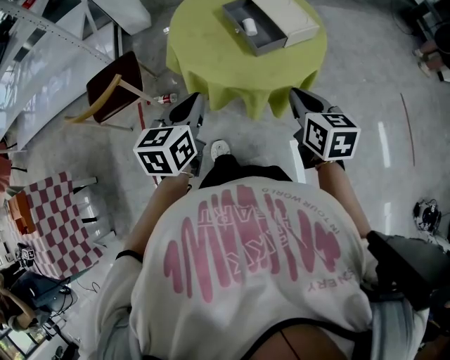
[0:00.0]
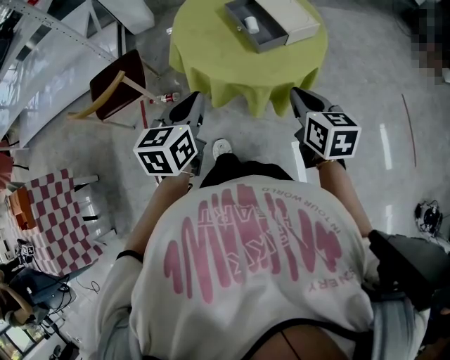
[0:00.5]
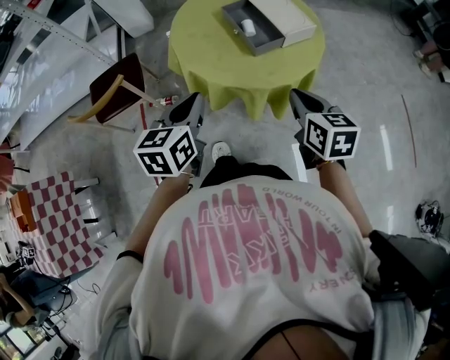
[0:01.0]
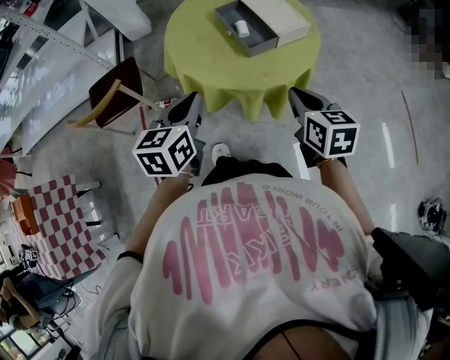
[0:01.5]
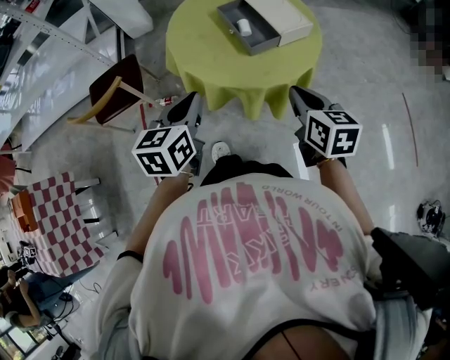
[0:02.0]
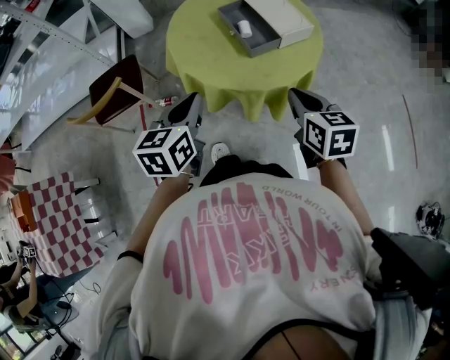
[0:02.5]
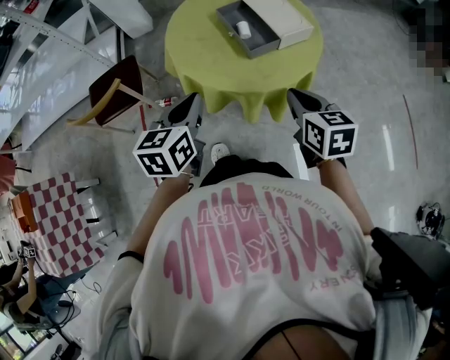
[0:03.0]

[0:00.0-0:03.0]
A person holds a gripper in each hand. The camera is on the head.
0:00.0 to 0:01.5: The grippers move only a little.
0:01.5 to 0:03.0: Neither gripper changes place.

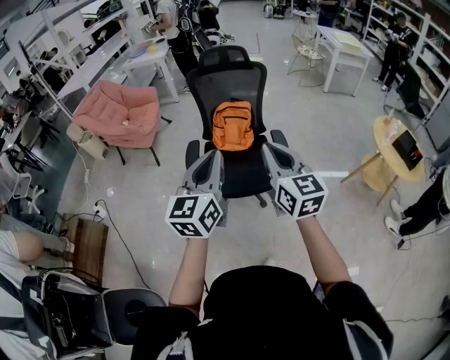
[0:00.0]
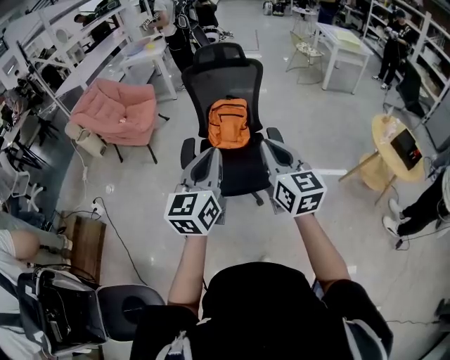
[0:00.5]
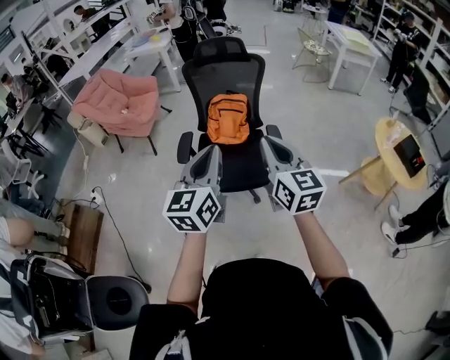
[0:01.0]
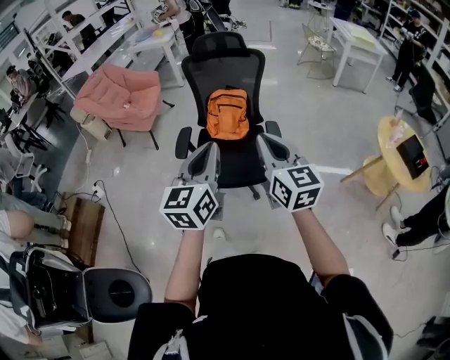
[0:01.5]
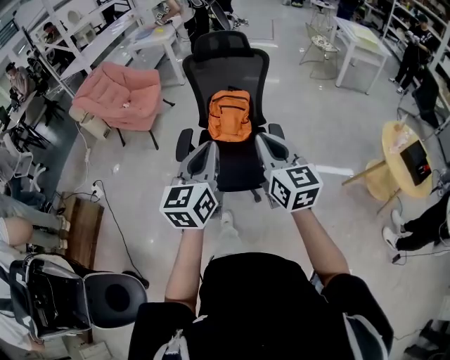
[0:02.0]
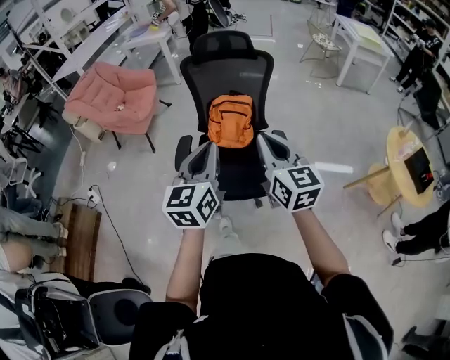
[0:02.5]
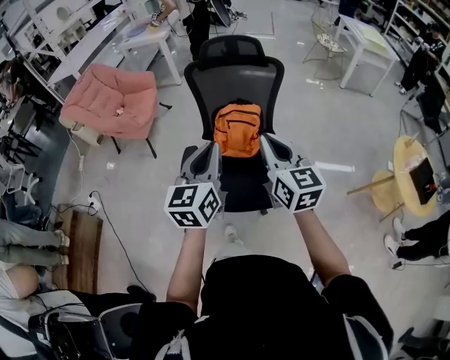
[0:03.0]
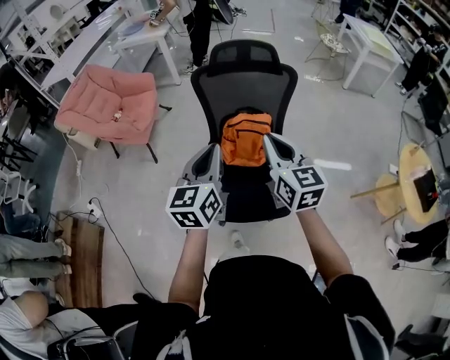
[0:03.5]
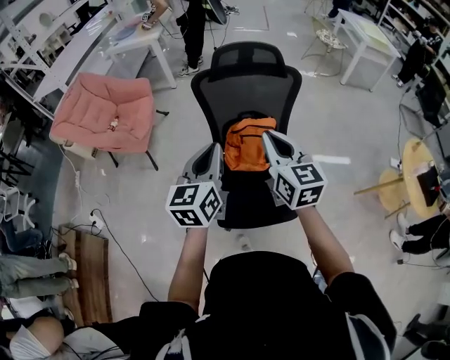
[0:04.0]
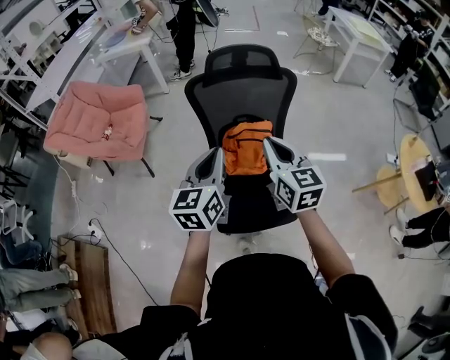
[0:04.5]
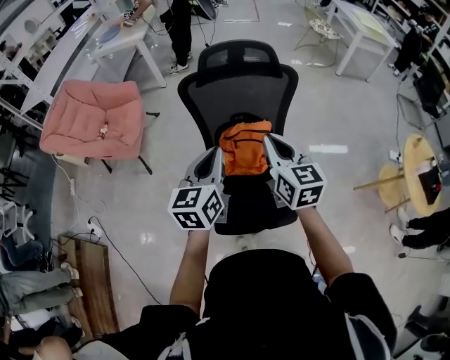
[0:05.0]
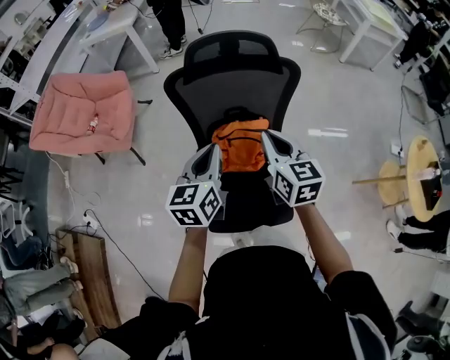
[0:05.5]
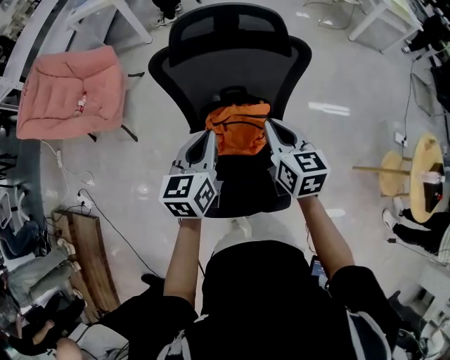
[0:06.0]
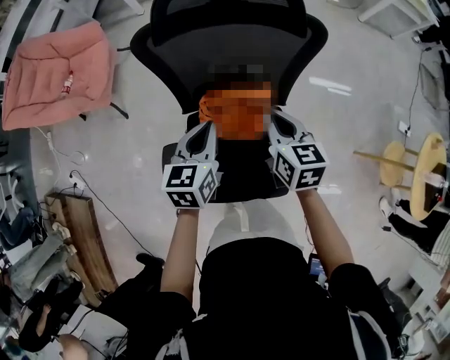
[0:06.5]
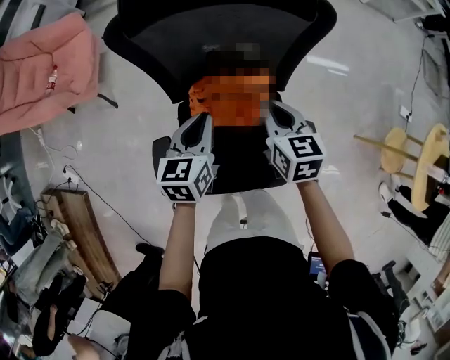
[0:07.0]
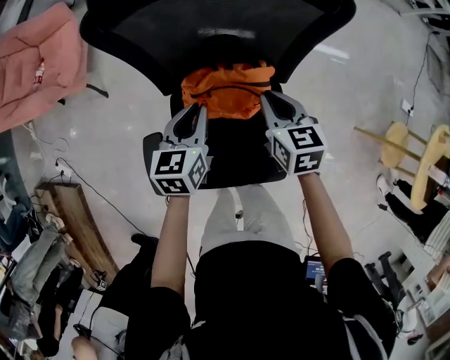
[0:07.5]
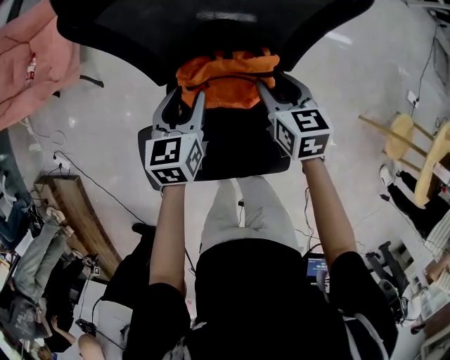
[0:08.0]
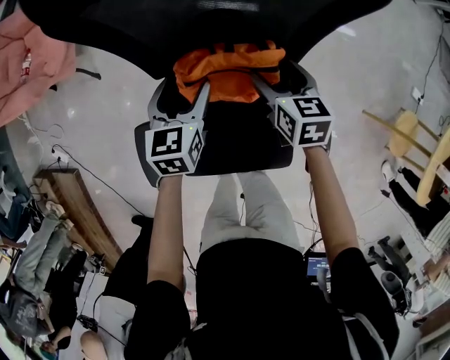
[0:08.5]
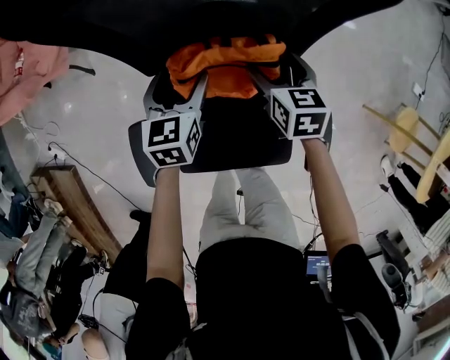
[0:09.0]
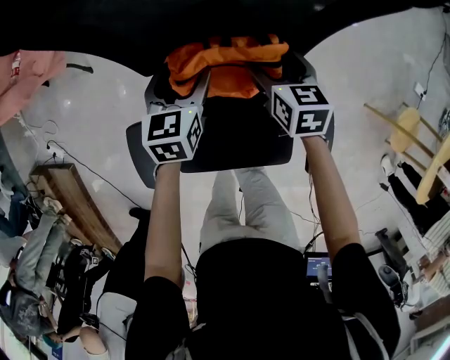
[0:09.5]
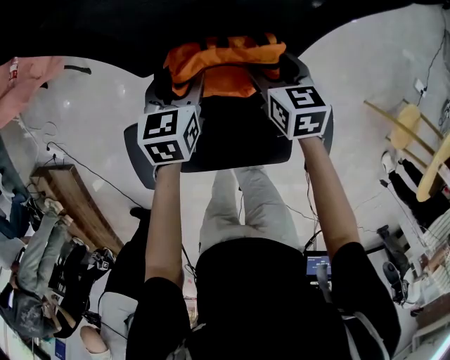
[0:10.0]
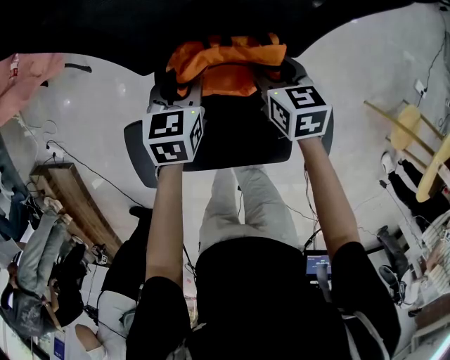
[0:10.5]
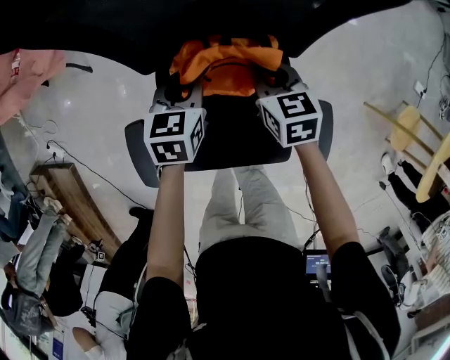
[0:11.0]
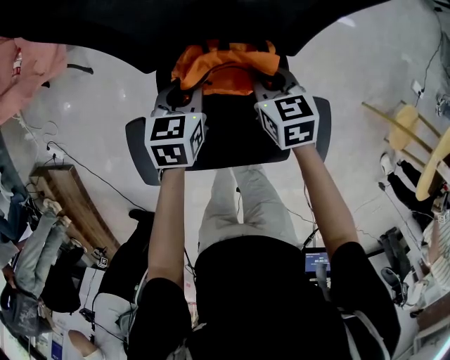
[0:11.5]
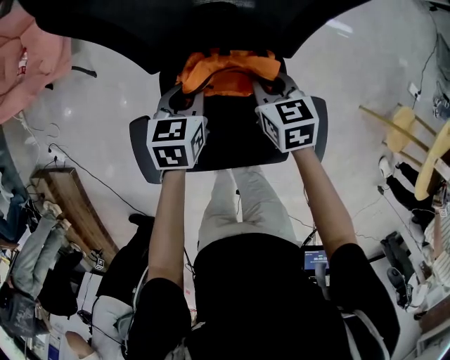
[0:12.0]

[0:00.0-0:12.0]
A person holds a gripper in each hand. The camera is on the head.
0:00.0 to 0:02.0: The right gripper travels forward and to the right by about 10 cm. The left gripper moves to the right and forward, approximately 10 cm.
0:02.0 to 0:04.0: Both grippers move forward and to the left, roughly 40 cm.
0:04.0 to 0:06.0: The right gripper is displaced forward, downward and to the right by approximately 25 cm; the left gripper heads forward and downward, covering approximately 25 cm.
0:06.0 to 0:08.0: Both grippers travel together downward, about 25 cm. The left gripper opens, while the right gripper opens.
0:08.0 to 0:10.0: Both grippers move downward, about 10 cm. The right gripper opens up.
0:10.0 to 0:12.0: The two grippers go some 5 cm backward. The left gripper closes up. Meanwhile the right gripper closes.

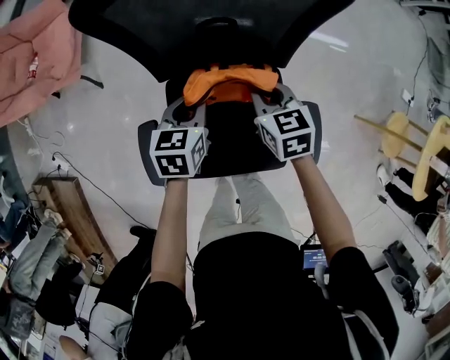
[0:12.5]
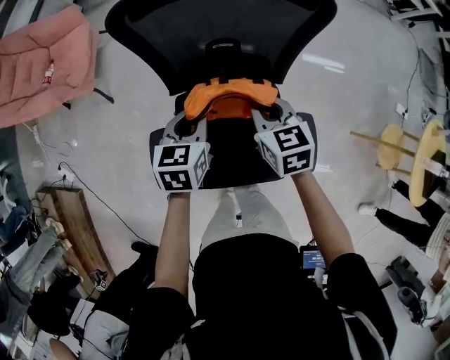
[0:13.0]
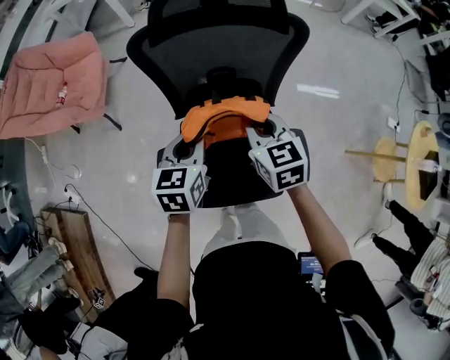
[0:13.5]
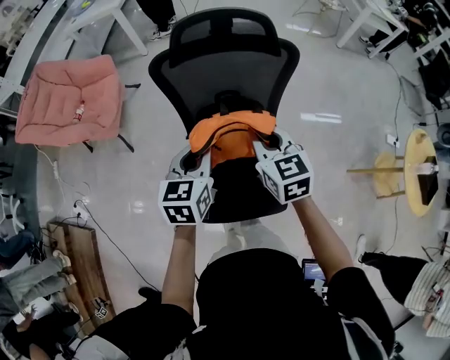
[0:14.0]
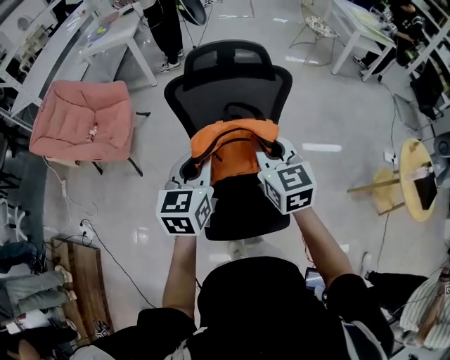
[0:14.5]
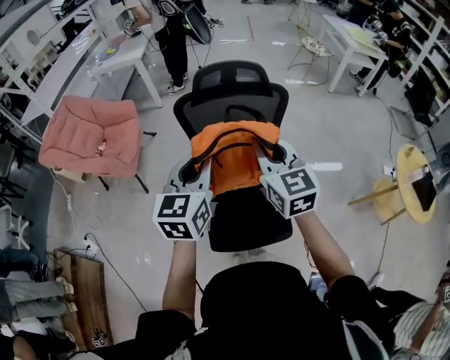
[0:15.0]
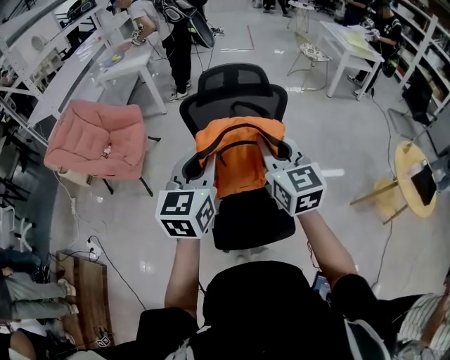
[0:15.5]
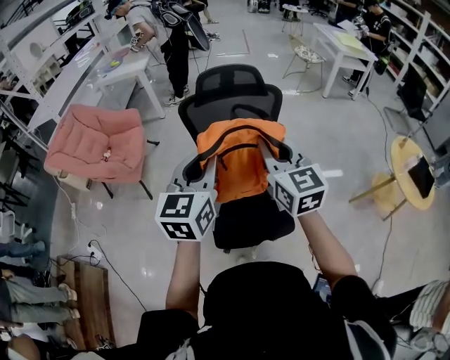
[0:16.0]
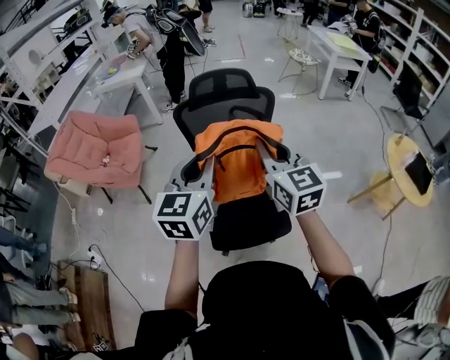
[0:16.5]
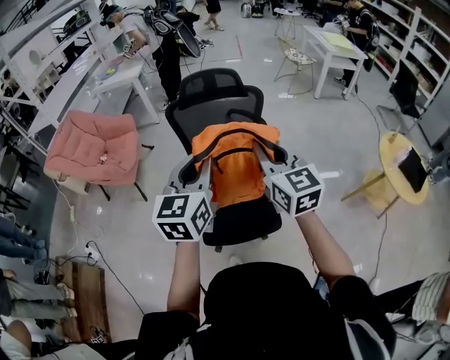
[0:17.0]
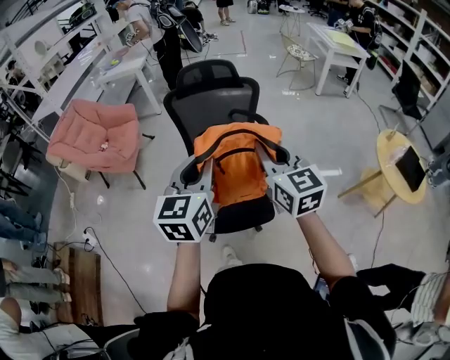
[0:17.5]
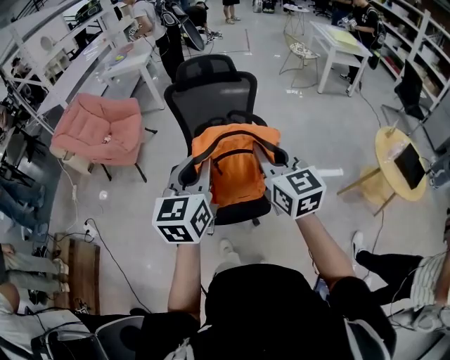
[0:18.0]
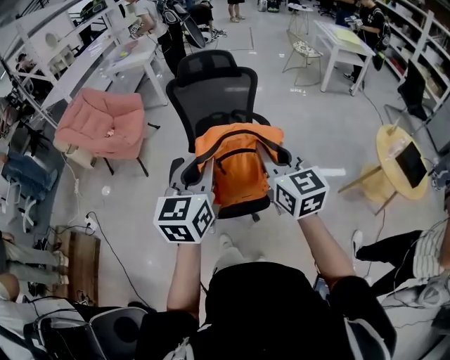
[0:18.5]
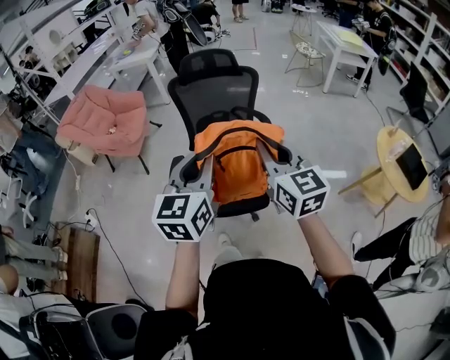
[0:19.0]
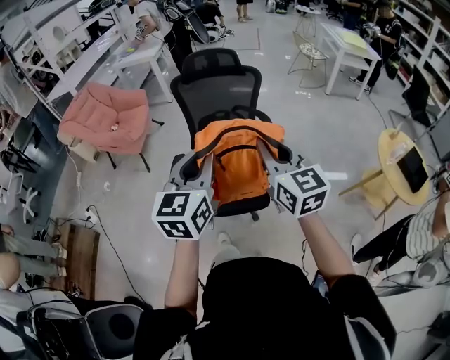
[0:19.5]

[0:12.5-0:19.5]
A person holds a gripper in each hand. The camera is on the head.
0:12.5 to 0:14.5: Both grippers move upward, about 35 cm. The left gripper rotates approximately 30 degrees. The right gripper rotates approximately 30 degrees.
0:14.5 to 0:16.0: Both grippers move backward and upward, some 15 cm.
0:16.0 to 0:17.5: The grippers both shift backward and to the right by roughly 15 cm.
0:17.5 to 0:19.5: Both grippers move backward, roughly 10 cm.

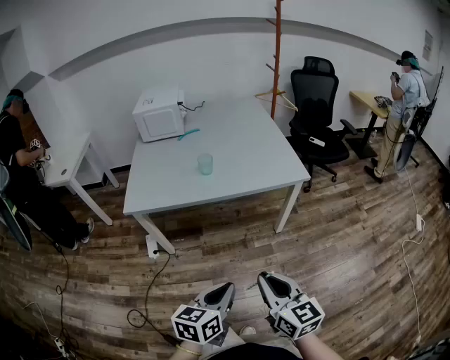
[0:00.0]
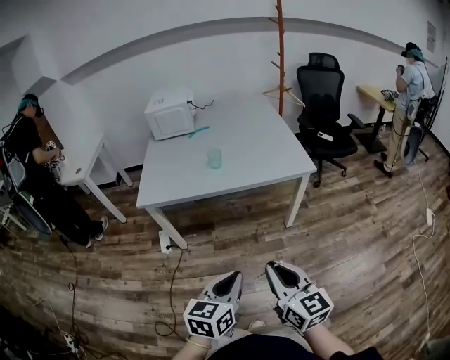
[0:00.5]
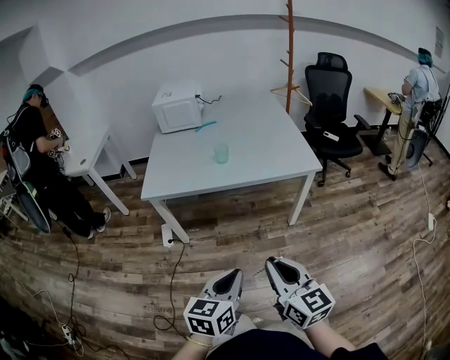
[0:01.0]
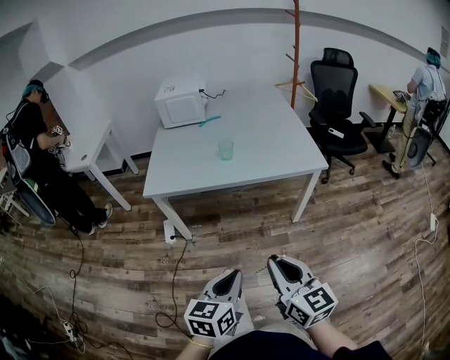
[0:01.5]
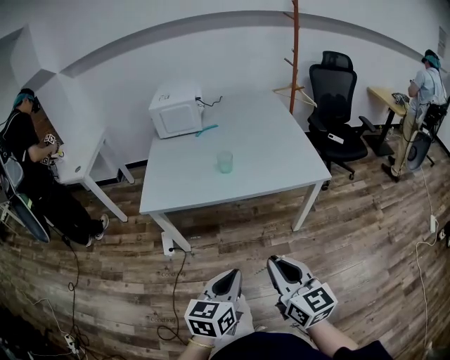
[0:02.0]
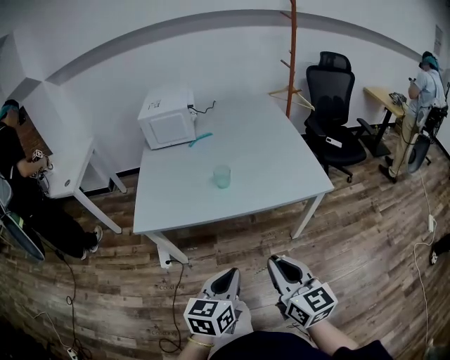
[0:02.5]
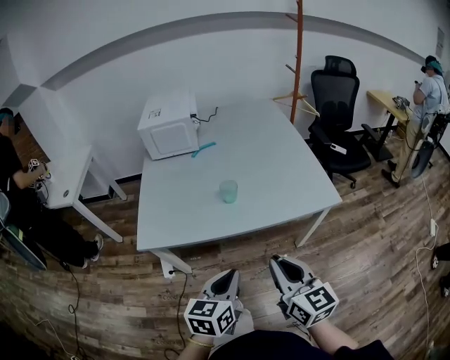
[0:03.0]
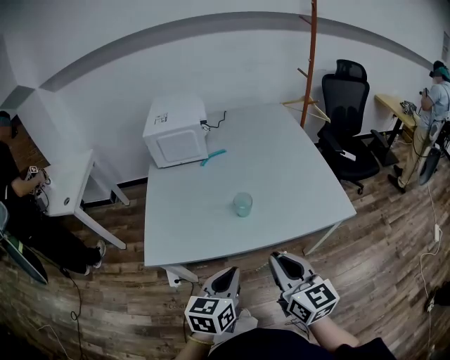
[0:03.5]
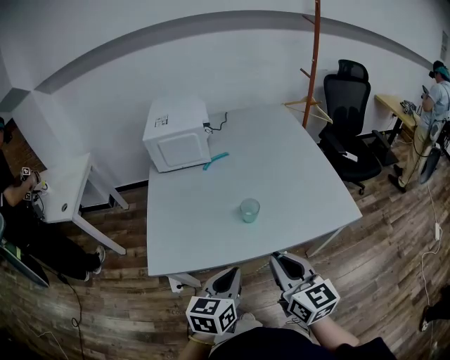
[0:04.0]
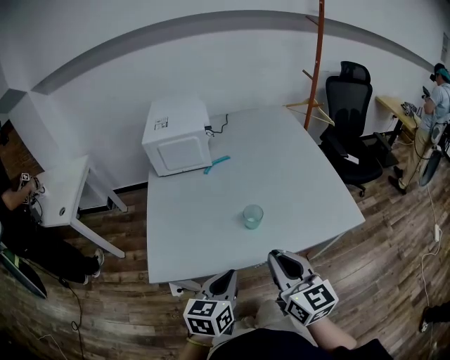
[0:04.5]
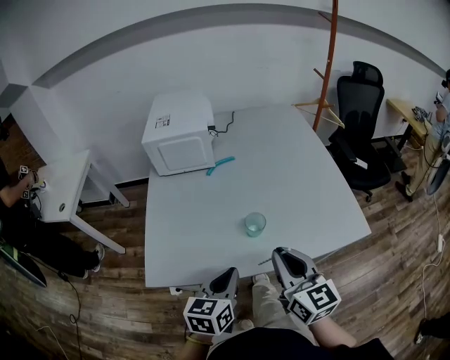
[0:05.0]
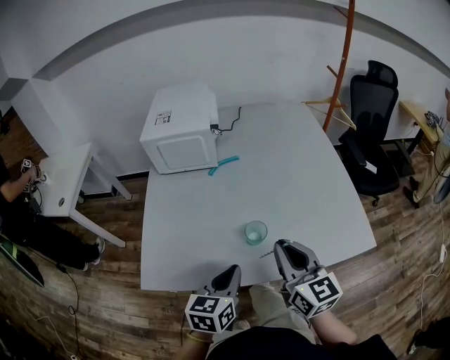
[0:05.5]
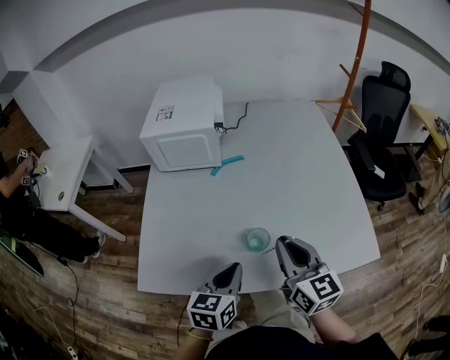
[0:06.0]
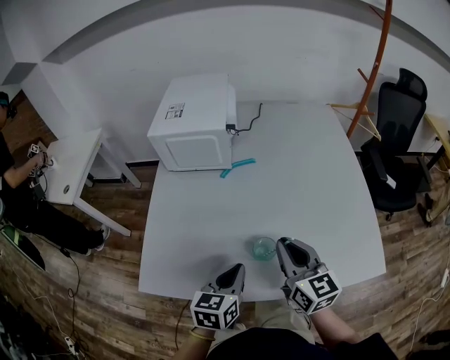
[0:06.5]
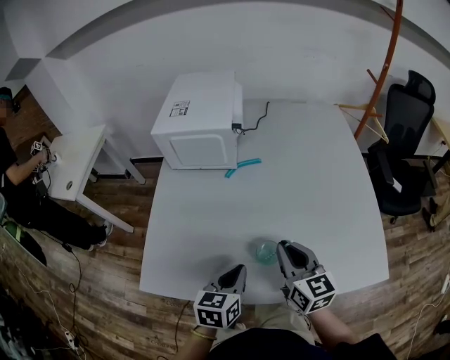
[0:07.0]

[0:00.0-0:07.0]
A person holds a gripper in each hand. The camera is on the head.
0:00.0 to 0:02.0: Both grippers move forward, approximately 5 cm.
0:02.0 to 0:03.5: Both grippers travel together forward, some 25 cm.
0:03.5 to 0:05.0: The grippers both shift forward by roughly 10 cm.
0:05.0 to 0:07.0: Both grippers move forward and downward, approximately 15 cm.
